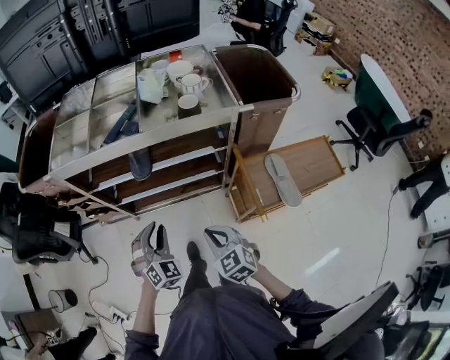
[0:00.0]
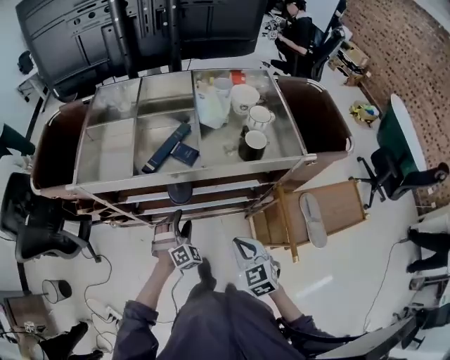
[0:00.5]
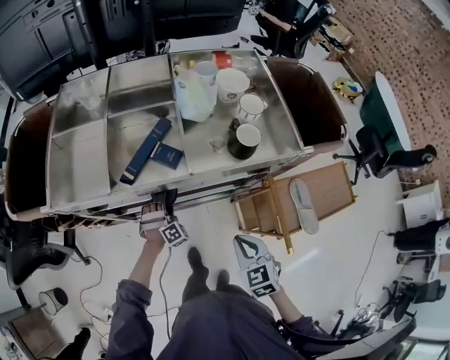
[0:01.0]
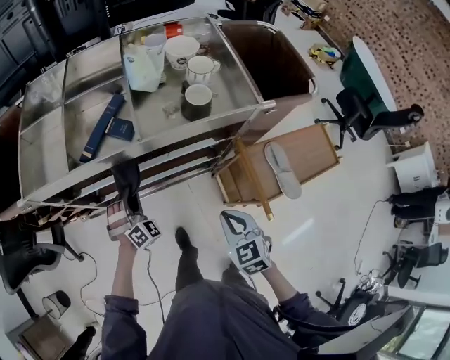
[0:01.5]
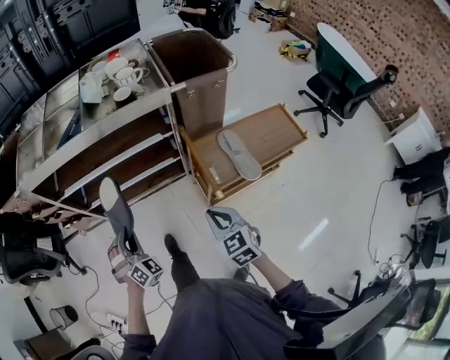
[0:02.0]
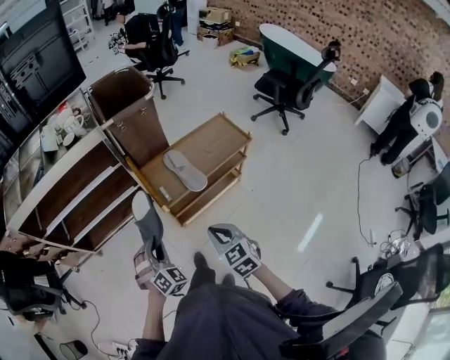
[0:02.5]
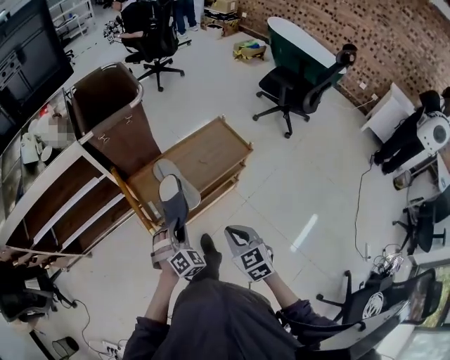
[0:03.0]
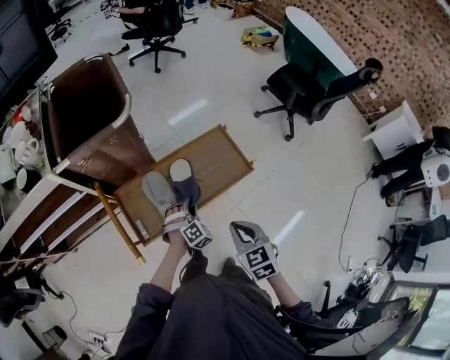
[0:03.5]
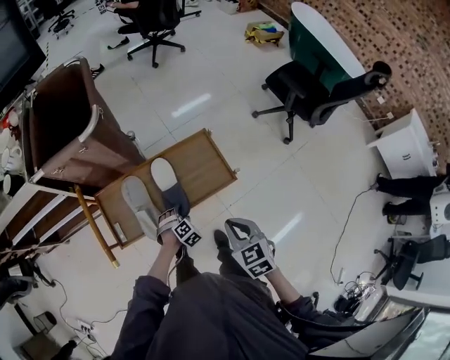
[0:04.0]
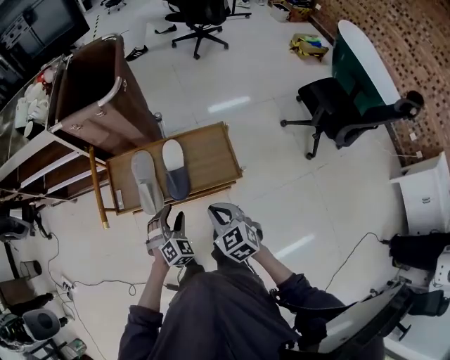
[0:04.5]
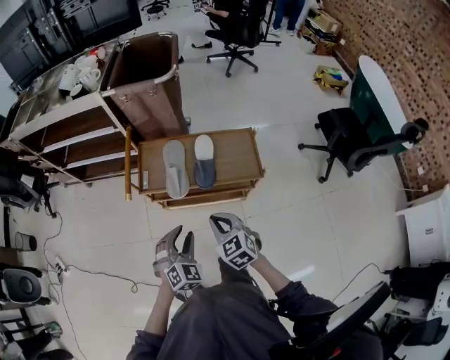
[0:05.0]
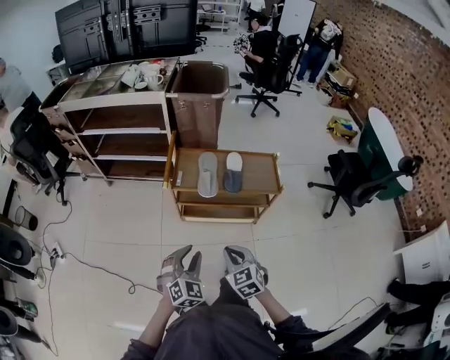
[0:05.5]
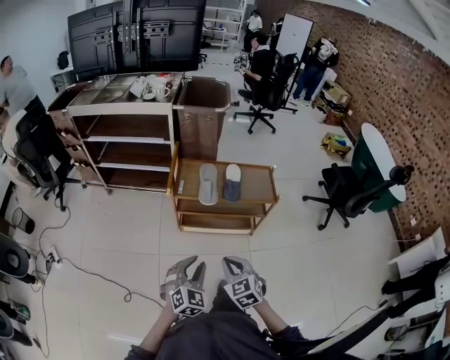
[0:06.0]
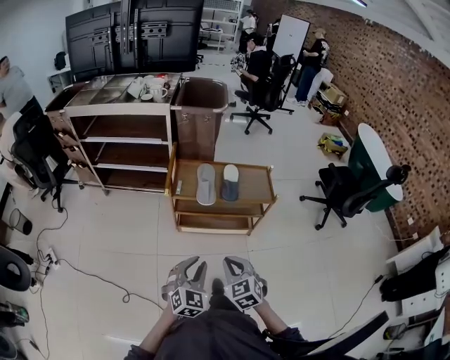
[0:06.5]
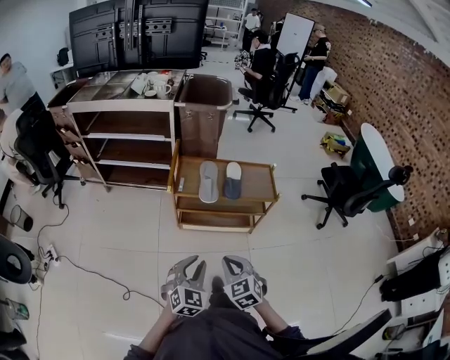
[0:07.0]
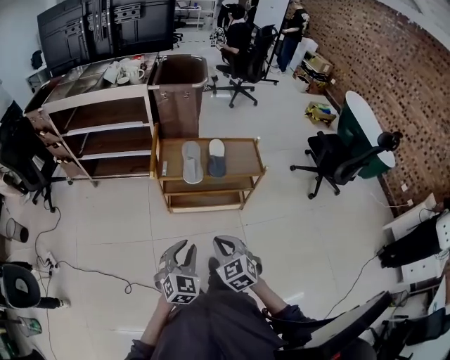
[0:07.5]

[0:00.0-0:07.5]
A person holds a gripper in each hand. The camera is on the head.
0:00.0 to 0:02.0: The right gripper goes roughly 15 cm to the right and backward, while the left gripper reaches roughly 30 cm forward, then returns, and opens and closes again.
0:02.0 to 0:04.0: The two grippers travel together, to the right, about 70 cm. The left gripper tips its fingers downward by approximately 40 degrees, and opens.
0:04.0 to 0:05.5: The left gripper heads backward, upward and to the left, covering approximately 50 cm, and points its fingers some 40 degrees further upward. The right gripper travels backward and to the left by some 35 cm, and swivels roughly 30 degrees.
0:05.5 to 0:07.5: Both grippers travel together backward, some 5 cm.

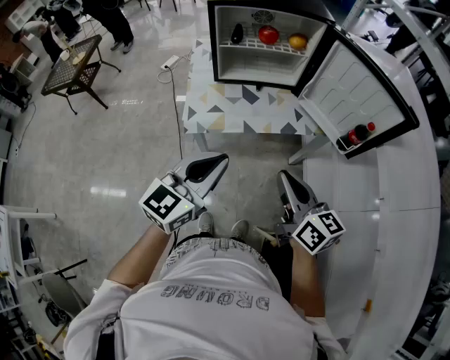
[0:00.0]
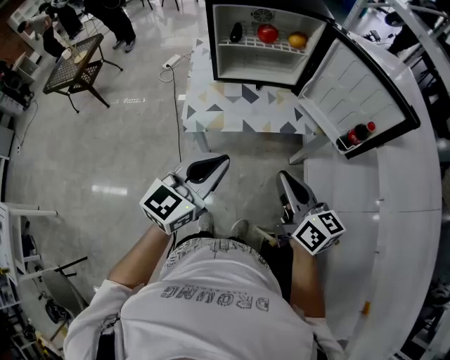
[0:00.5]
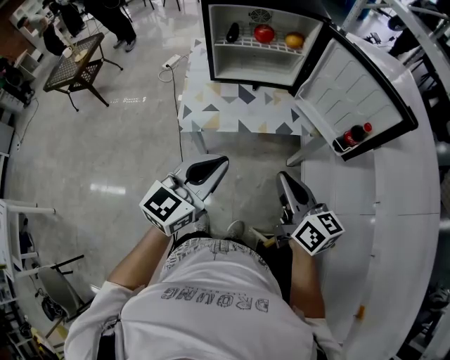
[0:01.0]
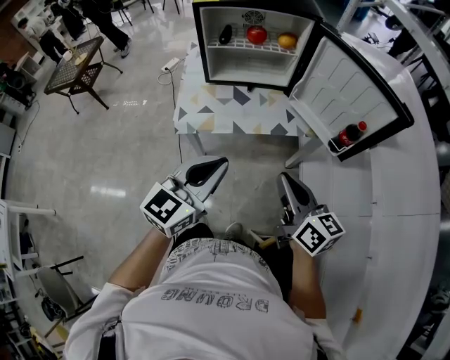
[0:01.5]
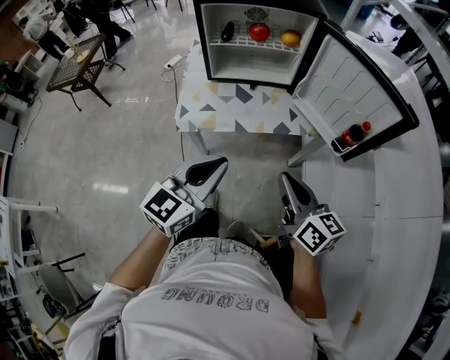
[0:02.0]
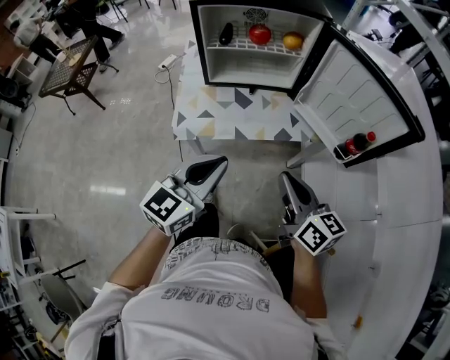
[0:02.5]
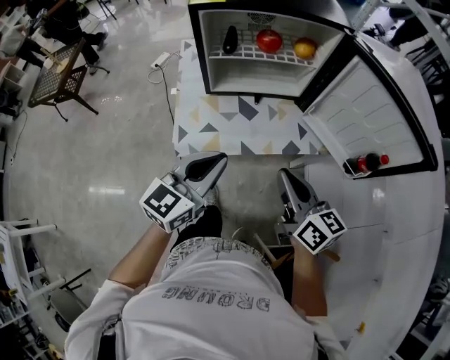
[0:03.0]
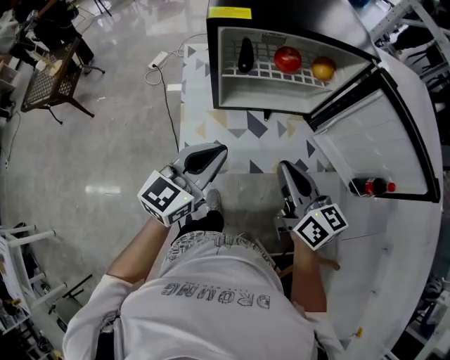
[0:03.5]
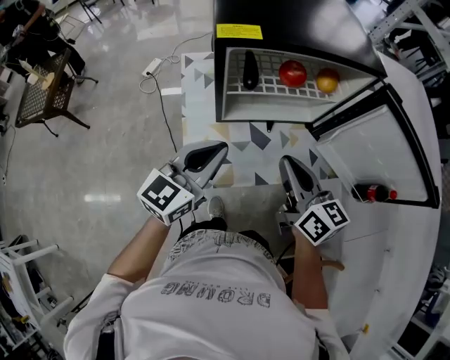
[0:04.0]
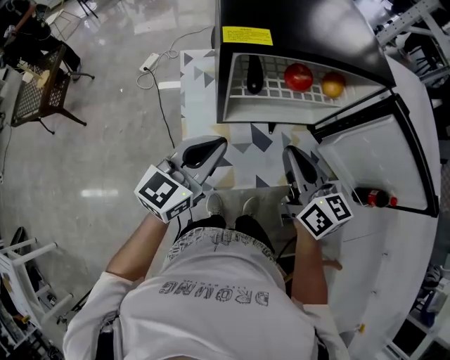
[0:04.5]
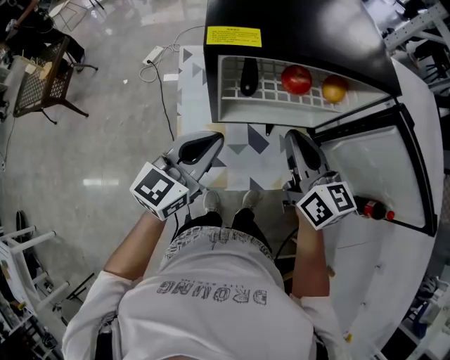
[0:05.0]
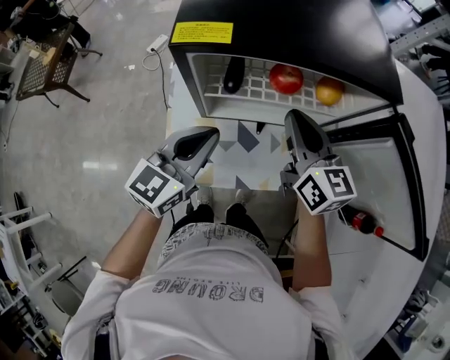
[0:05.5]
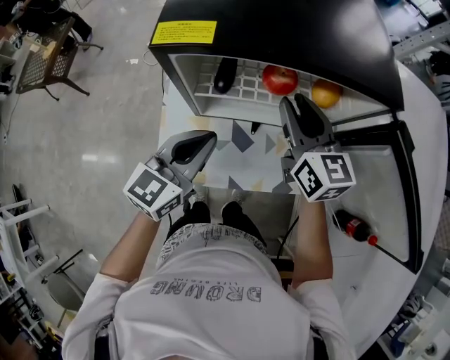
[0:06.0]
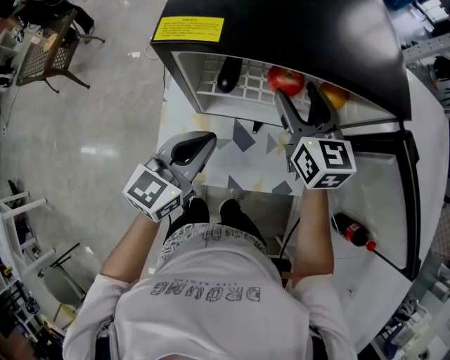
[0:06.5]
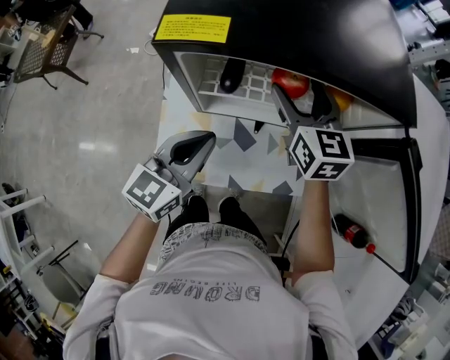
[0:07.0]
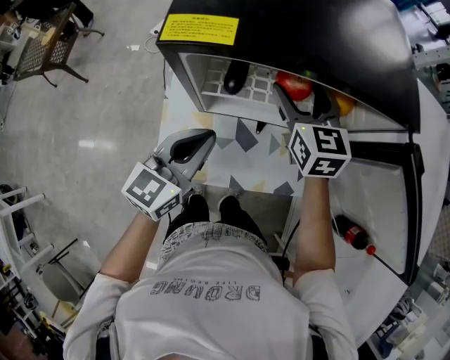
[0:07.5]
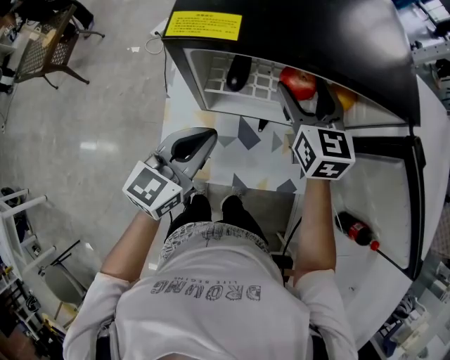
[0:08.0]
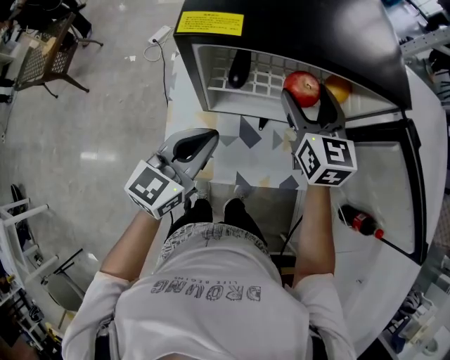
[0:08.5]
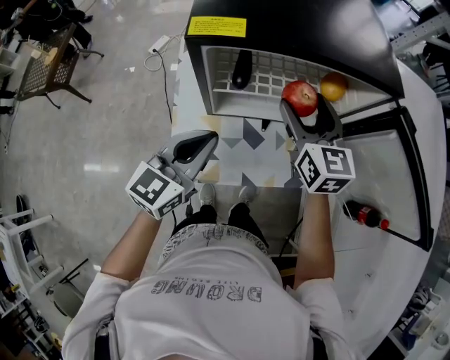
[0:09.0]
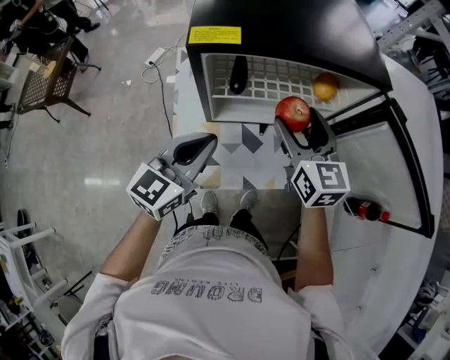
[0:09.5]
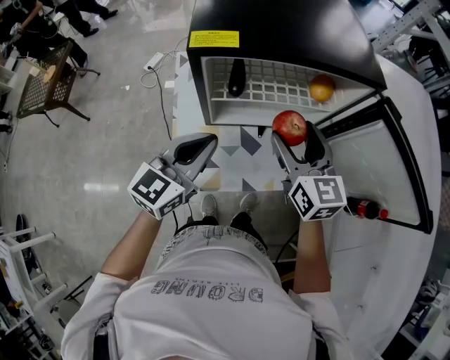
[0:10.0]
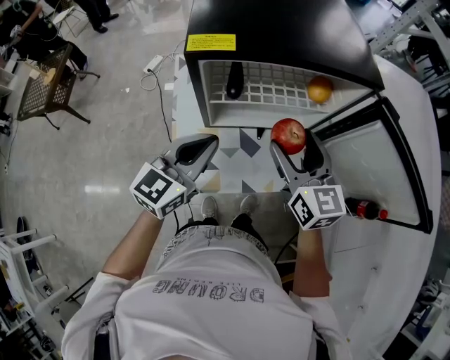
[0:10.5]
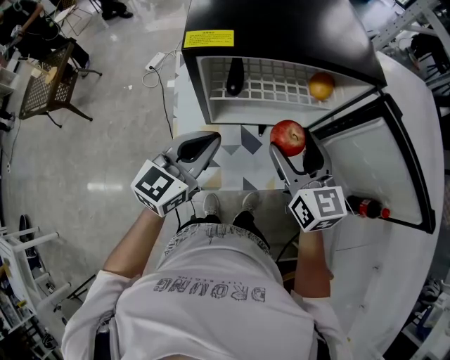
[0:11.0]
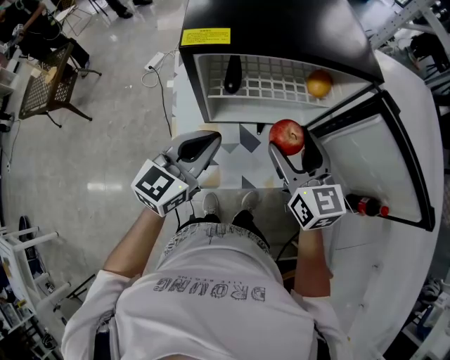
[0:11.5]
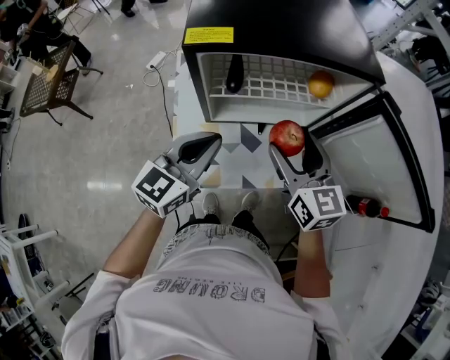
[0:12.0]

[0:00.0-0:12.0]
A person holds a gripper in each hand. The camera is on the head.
0:00.0 to 0:02.0: Both grippers travel together to the right, about 5 cm.
0:02.0 to 0:04.0: Both grippers travel together forward and to the left, some 35 cm.
0:04.0 to 0:06.0: The right gripper goes about 20 cm forward; the left gripper goes roughly 10 cm forward and to the right.
0:06.0 to 0:08.0: The right gripper shifts by roughly 5 cm, and opens.
0:08.0 to 0:10.0: The right gripper goes some 15 cm backward, while the left gripper shifts by about 5 cm.
0:10.0 to 0:12.0: The grippers make only small movements.

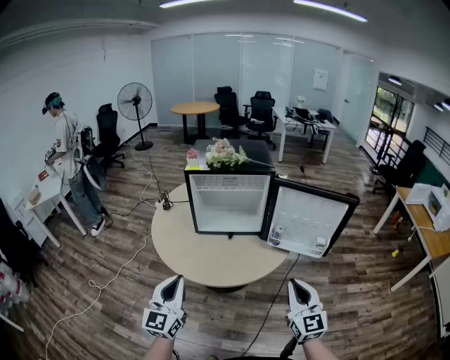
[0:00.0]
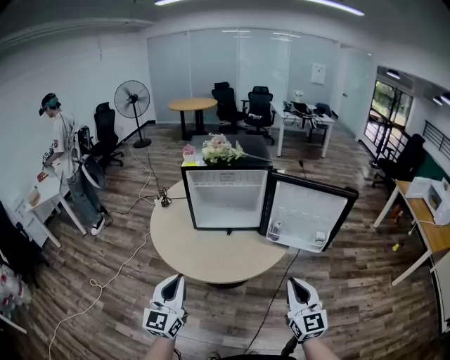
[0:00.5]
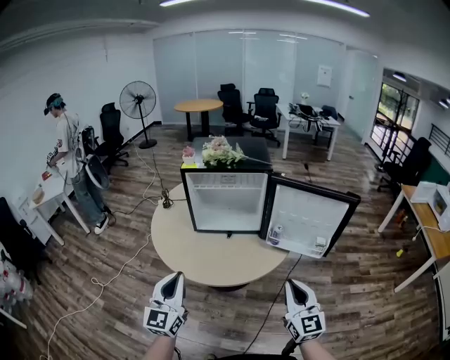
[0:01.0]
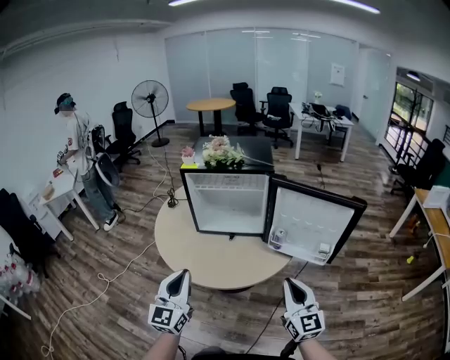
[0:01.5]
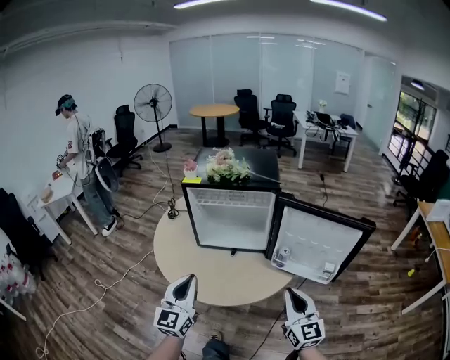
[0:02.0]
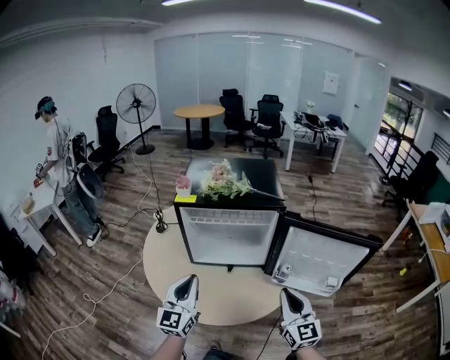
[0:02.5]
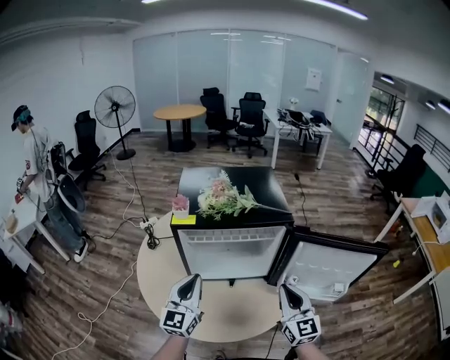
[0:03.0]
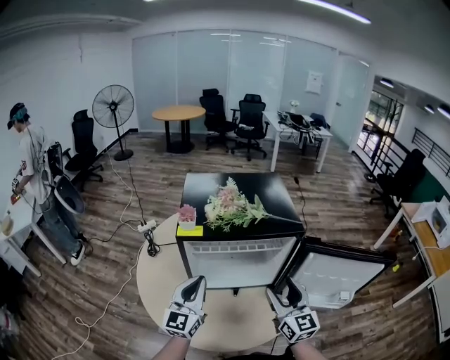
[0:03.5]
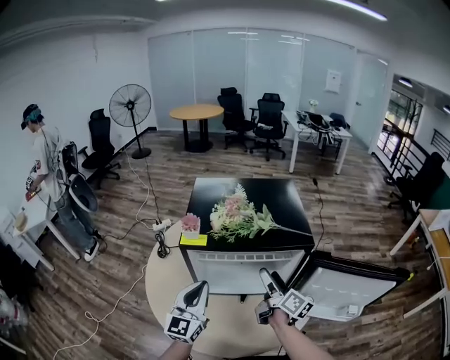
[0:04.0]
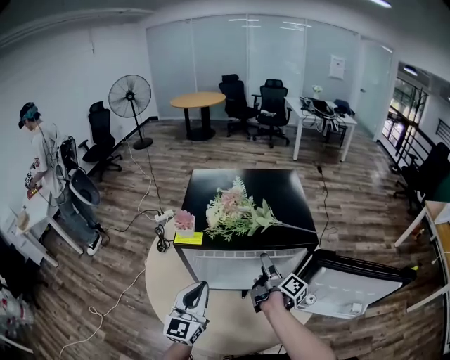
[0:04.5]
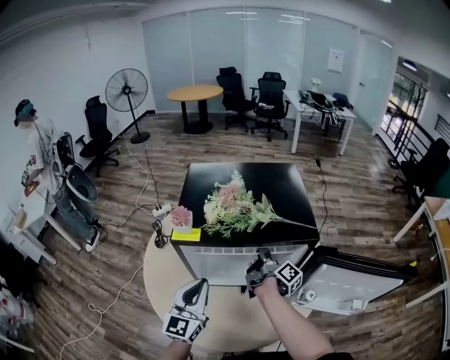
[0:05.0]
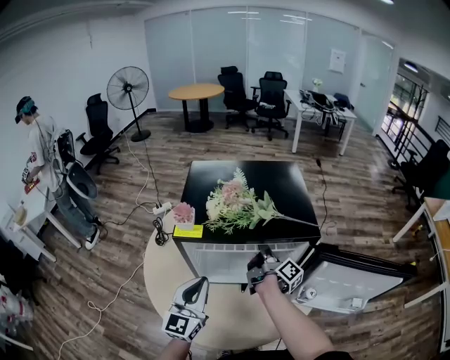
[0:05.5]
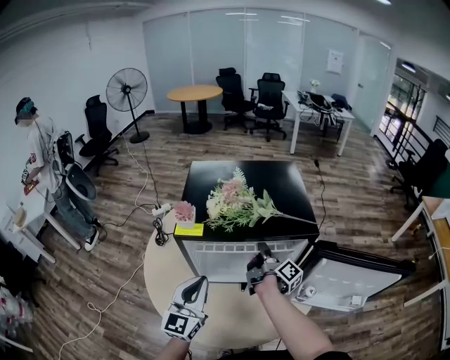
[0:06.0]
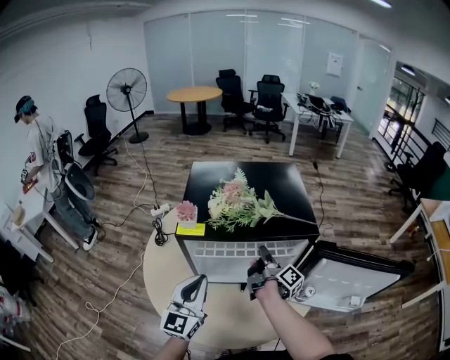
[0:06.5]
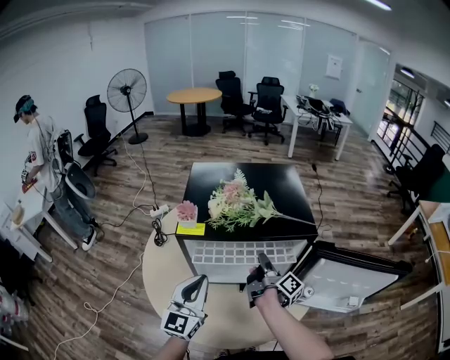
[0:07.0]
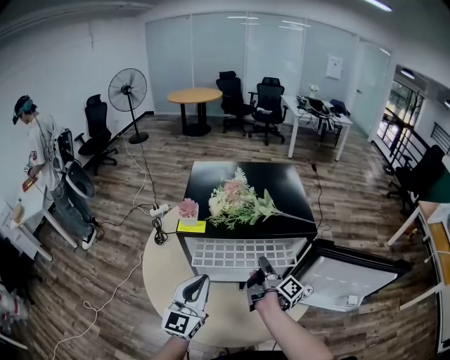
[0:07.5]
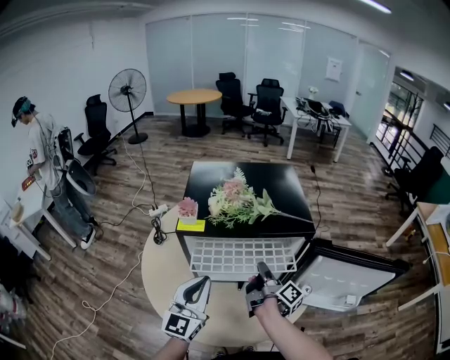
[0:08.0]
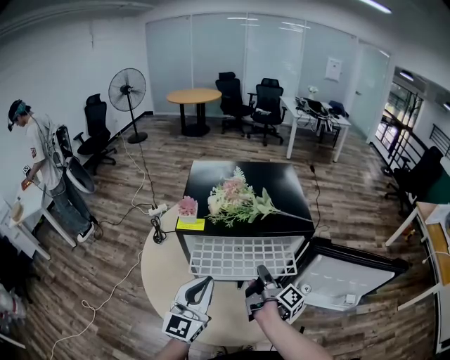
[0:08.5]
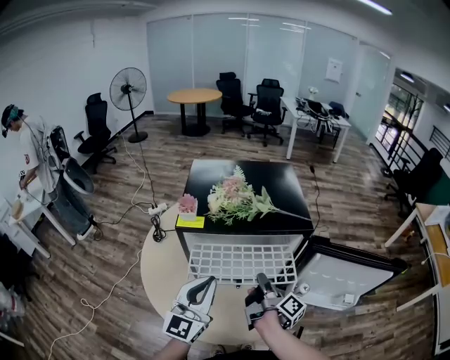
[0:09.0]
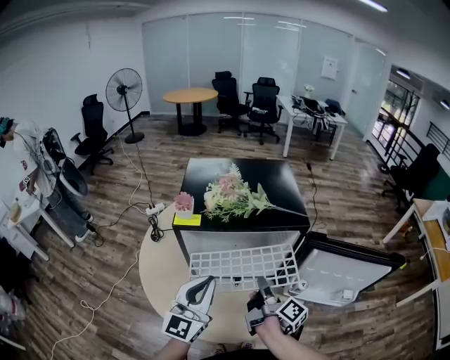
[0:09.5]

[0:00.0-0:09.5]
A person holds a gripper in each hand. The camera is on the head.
0:00.0 to 0:02.0: The right gripper heads forward, covering roughly 10 cm. The left gripper moves forward and to the right, about 15 cm.
0:02.0 to 0:04.0: The left gripper moves forward, about 30 cm, while the right gripper shifts roughly 40 cm forward and to the left, twists about 60 degrees clockwise, seen from behind, and opens up.
0:04.0 to 0:05.5: The right gripper goes approximately 10 cm forward and downward, rotates approximately 30 degrees, and closes up.
0:05.5 to 0:07.5: The right gripper shifts some 10 cm backward.
0:07.5 to 0:09.5: The right gripper is displaced backward by approximately 10 cm, while the left gripper ends up about 5 cm from where it was.
